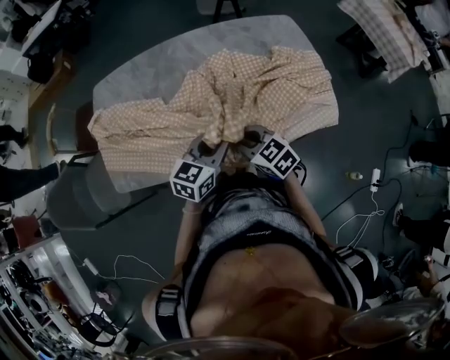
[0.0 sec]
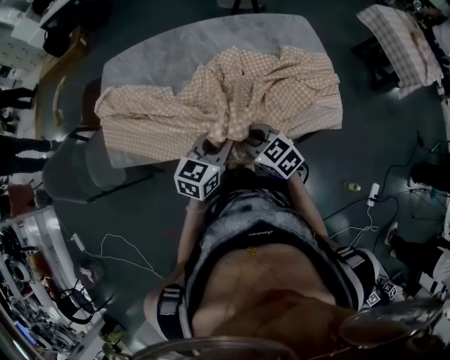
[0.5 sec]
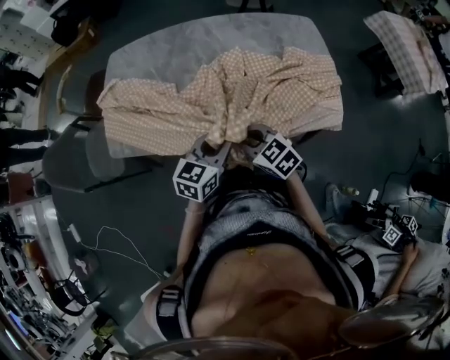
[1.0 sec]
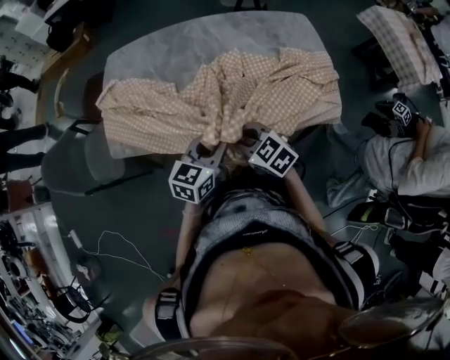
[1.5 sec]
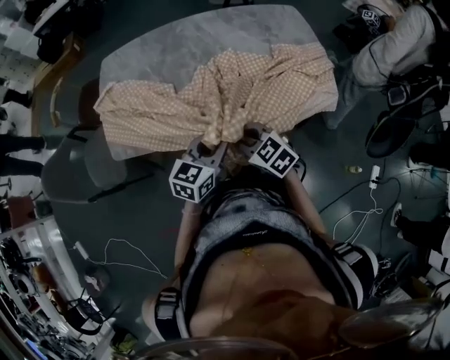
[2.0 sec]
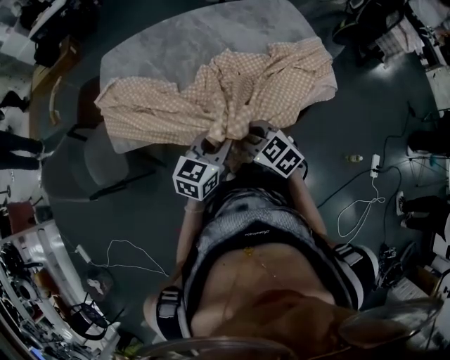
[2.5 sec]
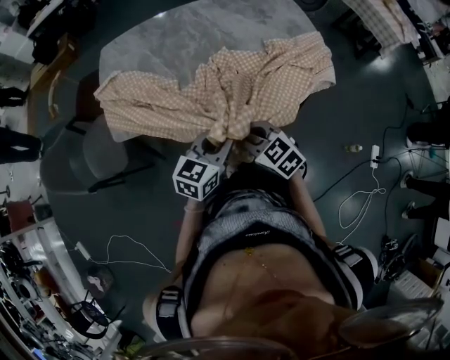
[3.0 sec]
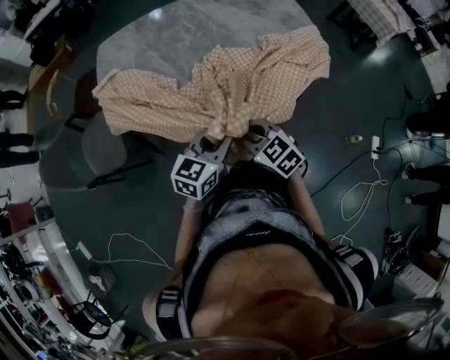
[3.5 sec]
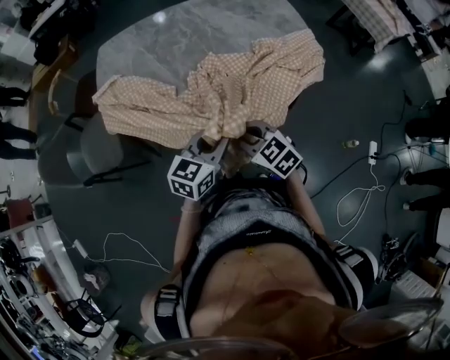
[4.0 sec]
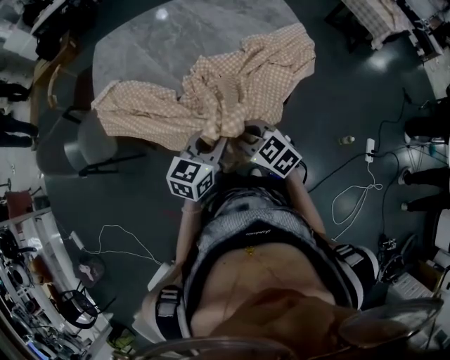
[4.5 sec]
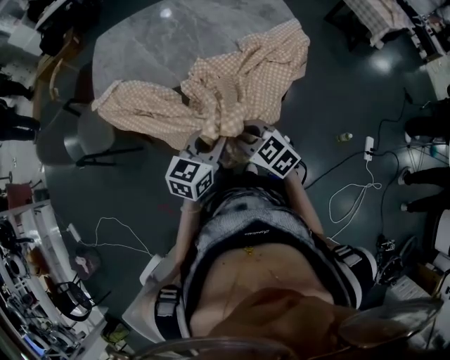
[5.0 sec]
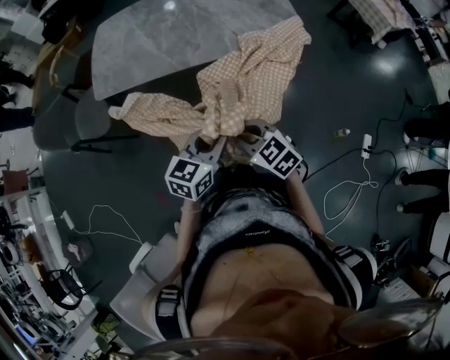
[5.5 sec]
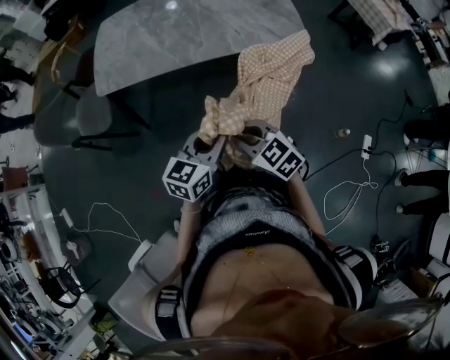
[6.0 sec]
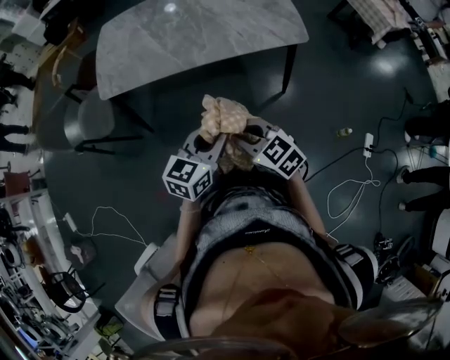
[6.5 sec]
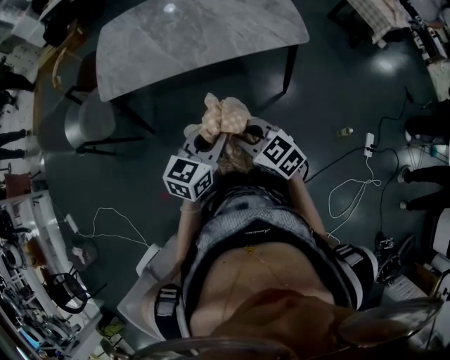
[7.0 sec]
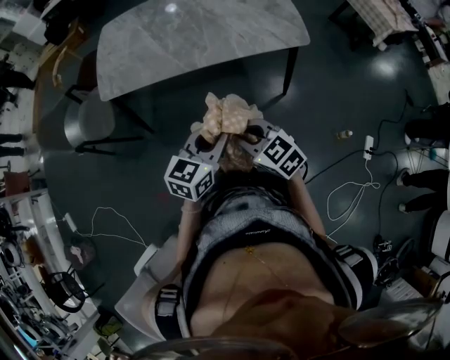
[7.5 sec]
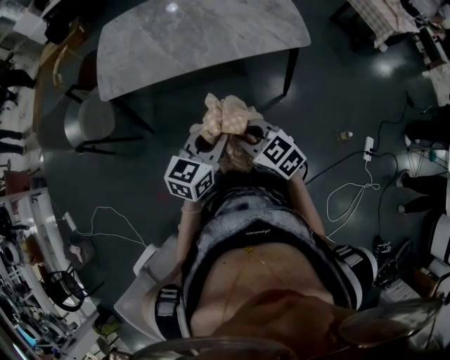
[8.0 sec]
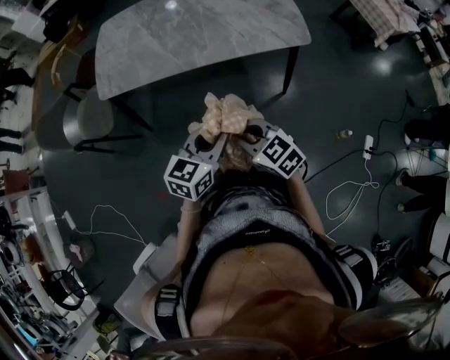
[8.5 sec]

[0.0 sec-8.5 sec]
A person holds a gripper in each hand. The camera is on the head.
0.0 sec to 2.0 sec: Both grippers travel together backward, some 10 cm.
2.0 sec to 4.0 sec: The two grippers go about 15 cm backward.
4.0 sec to 6.5 sec: Both grippers travel together backward, about 15 cm.
6.5 sec to 8.5 sec: The grippers move only a little.

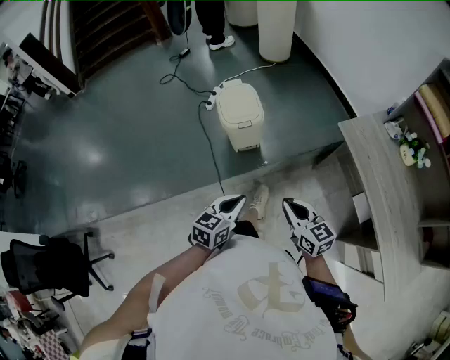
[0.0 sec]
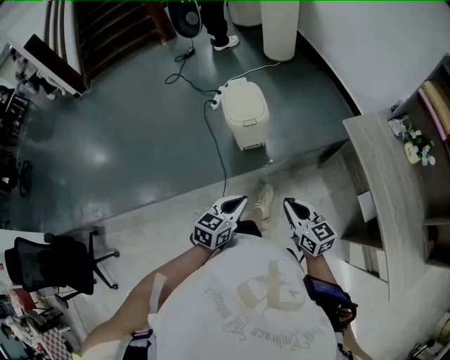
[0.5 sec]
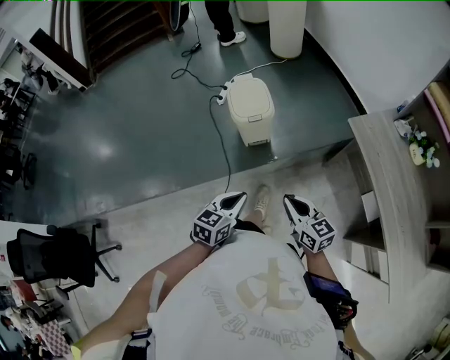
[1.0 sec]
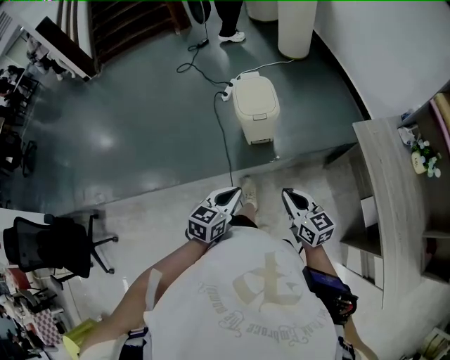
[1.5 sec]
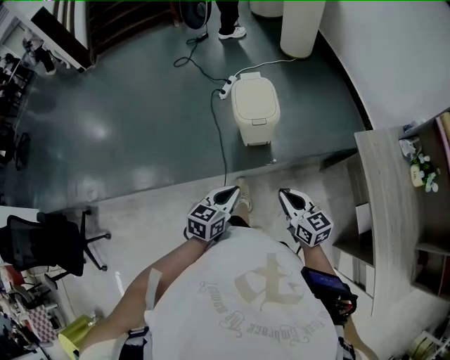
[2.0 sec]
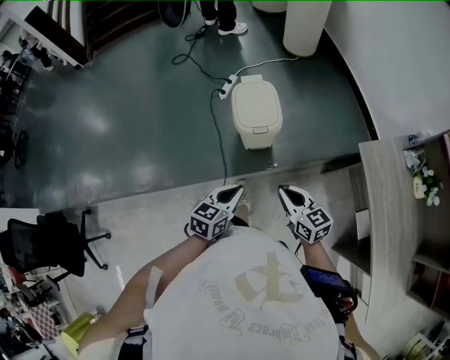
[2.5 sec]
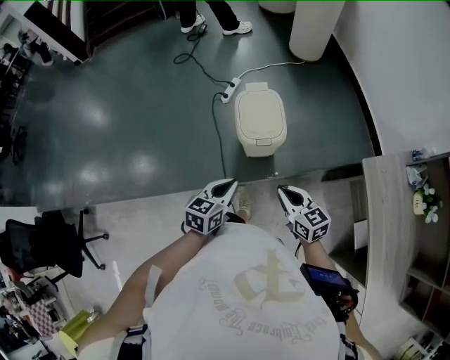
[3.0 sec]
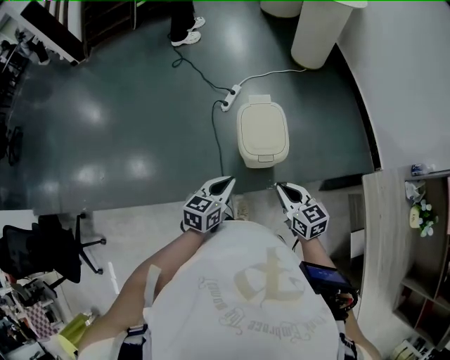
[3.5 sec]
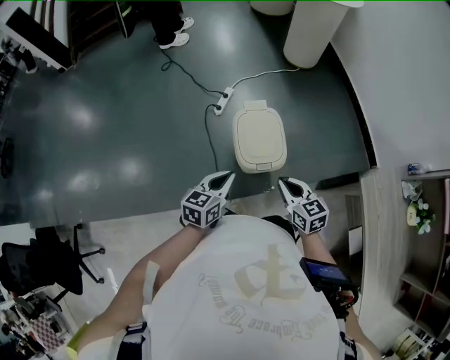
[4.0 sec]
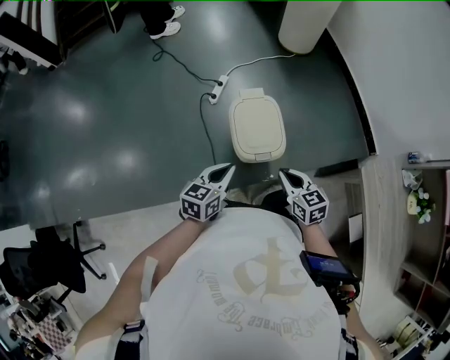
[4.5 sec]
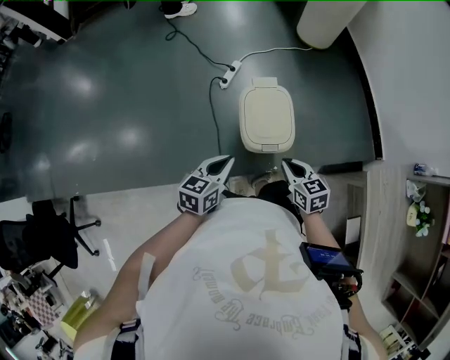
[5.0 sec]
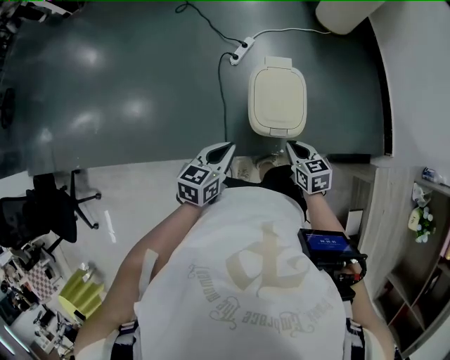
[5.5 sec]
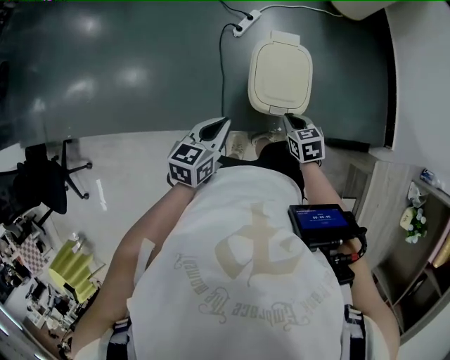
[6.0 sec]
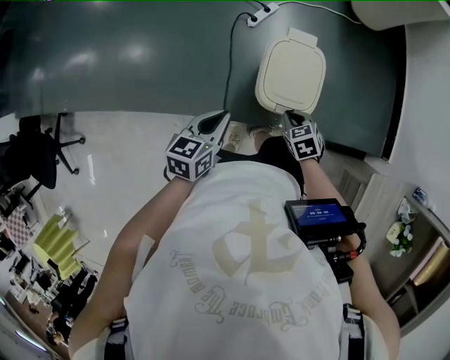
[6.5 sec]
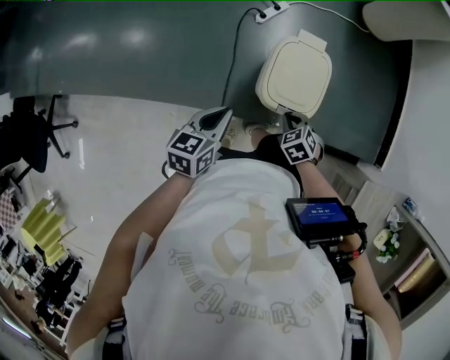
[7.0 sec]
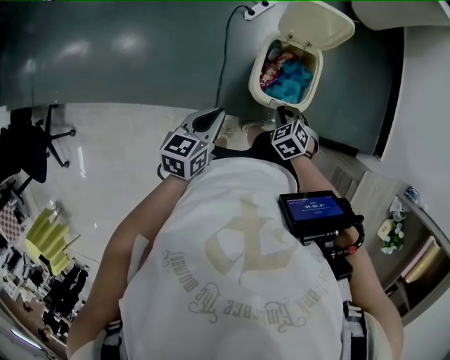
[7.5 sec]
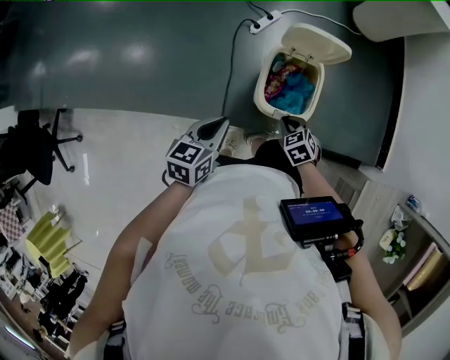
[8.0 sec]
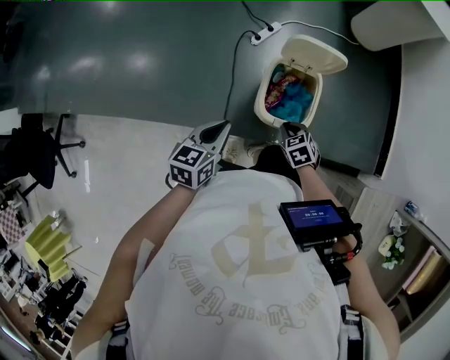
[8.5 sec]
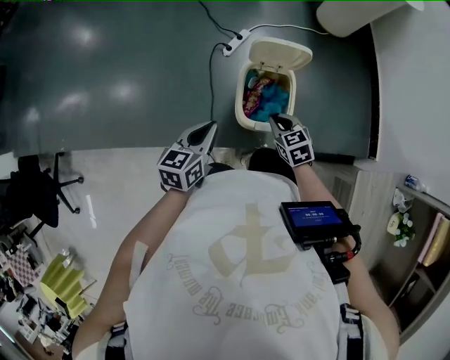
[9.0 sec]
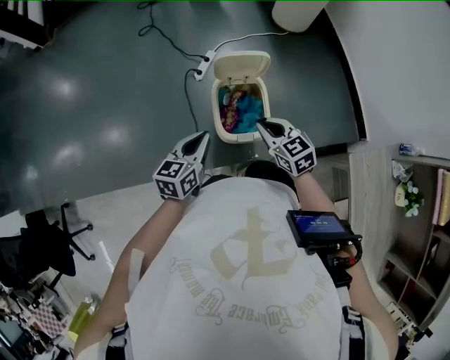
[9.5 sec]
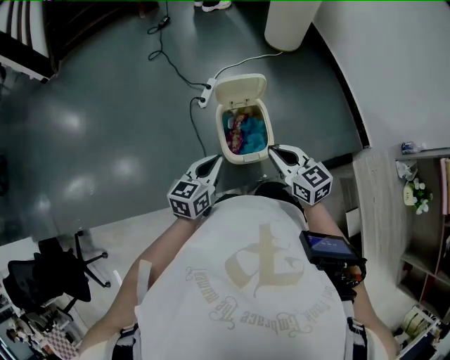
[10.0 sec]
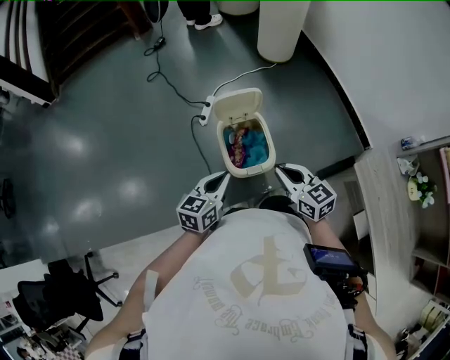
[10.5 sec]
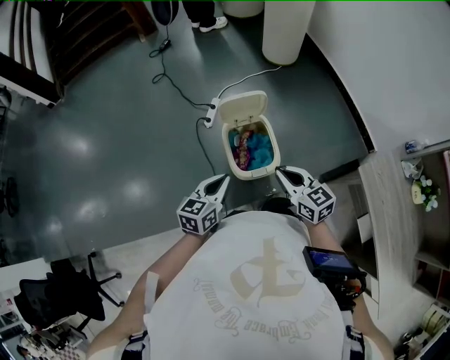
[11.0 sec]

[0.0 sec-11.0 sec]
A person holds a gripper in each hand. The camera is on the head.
0.0 sec to 2.0 sec: Both grippers move forward, approximately 5 cm.
2.0 sec to 3.5 sec: The two grippers go approximately 25 cm forward.
3.5 sec to 5.5 sec: The left gripper goes about 5 cm forward, while the right gripper travels downward and forward by roughly 15 cm.
5.5 sec to 7.5 sec: The right gripper shifts some 10 cm downward, and twists some 40 degrees counterclockwise, seen from behind.
7.5 sec to 9.0 sec: The right gripper moves upward and forward, some 10 cm, and swivels roughly 30 degrees. The left gripper moves upward, some 5 cm.
9.0 sec to 11.0 sec: The left gripper goes about 5 cm to the right, and changes its angle by roughly 20 degrees. Meanwhile the right gripper travels upward and backward by some 15 cm, and turns by approximately 30 degrees.

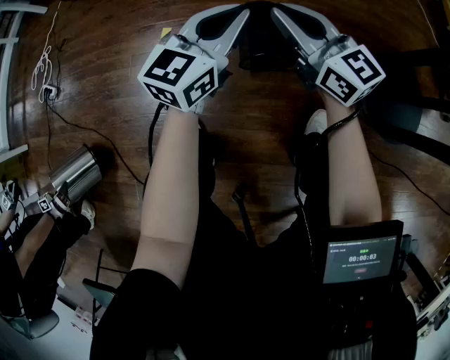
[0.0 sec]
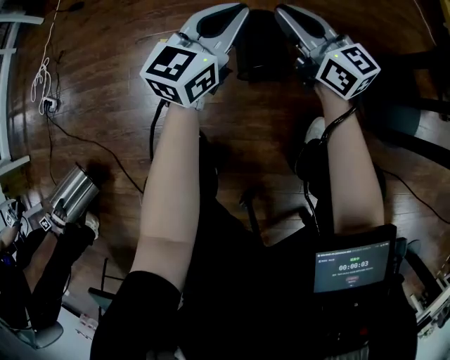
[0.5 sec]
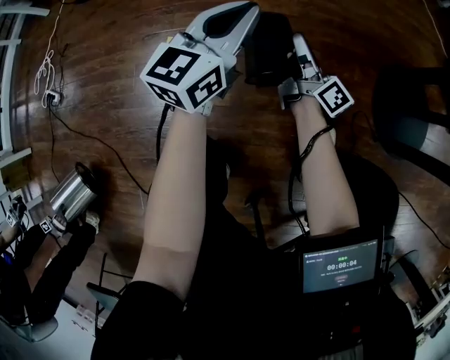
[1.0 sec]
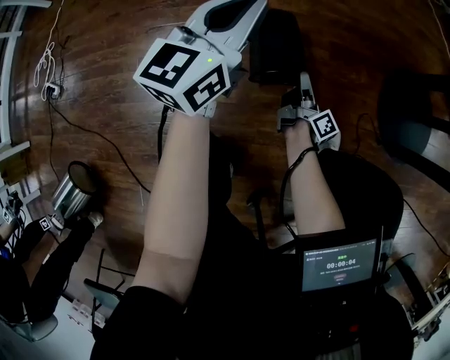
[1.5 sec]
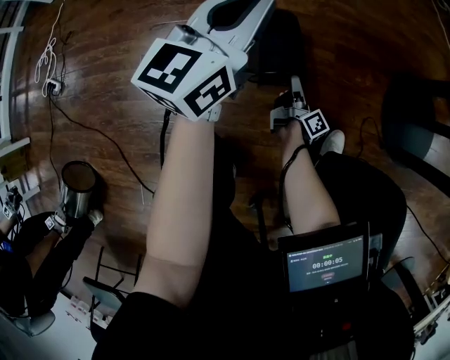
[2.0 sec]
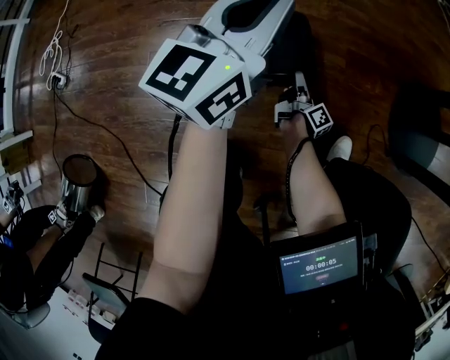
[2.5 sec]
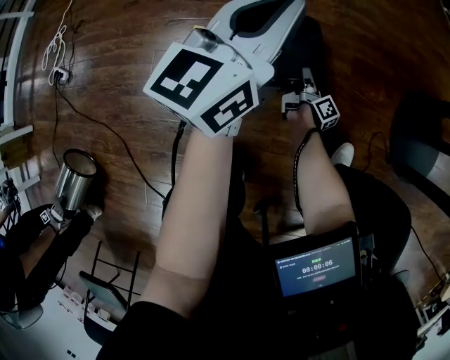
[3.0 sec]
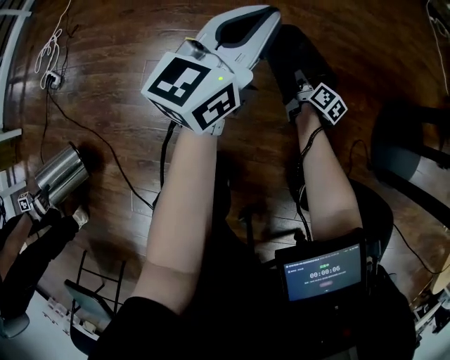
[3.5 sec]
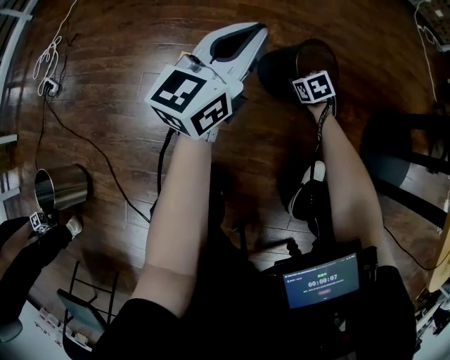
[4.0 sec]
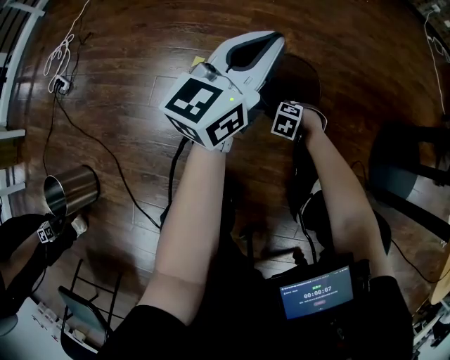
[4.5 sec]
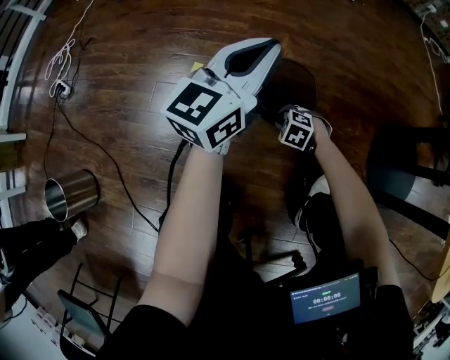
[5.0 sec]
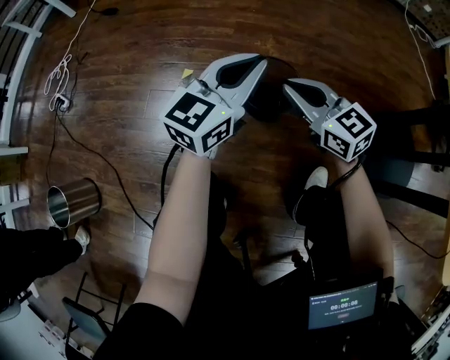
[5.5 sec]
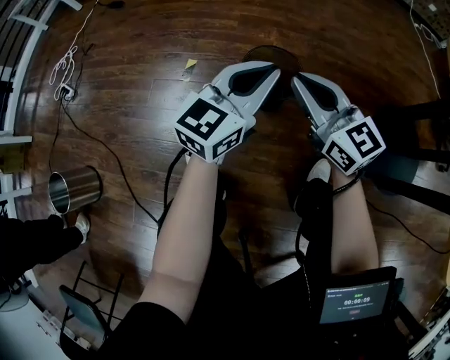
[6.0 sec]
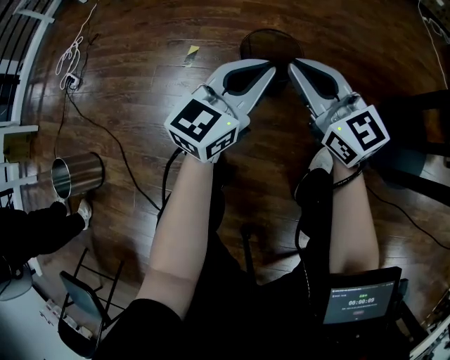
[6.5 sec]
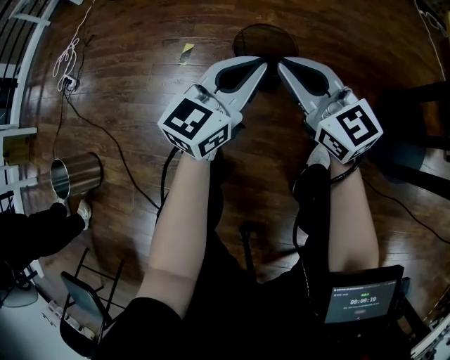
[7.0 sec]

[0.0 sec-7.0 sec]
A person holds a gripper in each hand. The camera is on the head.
0.0 sec to 2.0 sec: The right gripper goes about 35 cm downward, rotates around the line of its fingers by about 70 degrees, clockwise from behind, and opens up; the left gripper shifts about 5 cm forward.
2.0 sec to 3.5 sec: The right gripper heads forward, covering roughly 10 cm, changes its angle by some 40 degrees, and closes.
3.5 sec to 5.0 sec: The right gripper moves some 15 cm, and rotates around the line of its fingers by about 100 degrees, counterclockwise from behind.
5.0 sec to 7.0 sec: The right gripper shifts approximately 35 cm upward, and tips its fingers upward by roughly 70 degrees. Meanwhile the left gripper moves about 15 cm.
